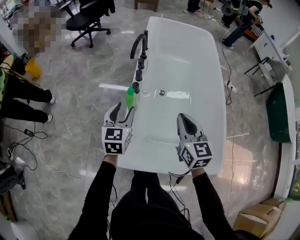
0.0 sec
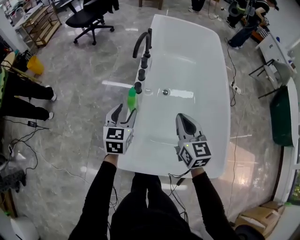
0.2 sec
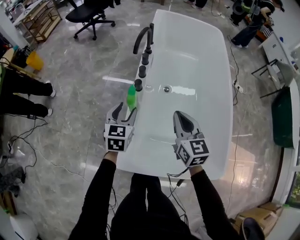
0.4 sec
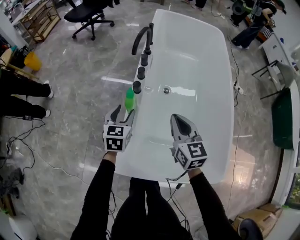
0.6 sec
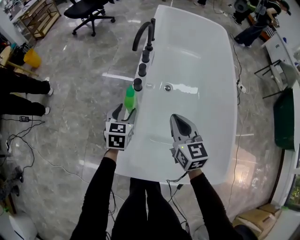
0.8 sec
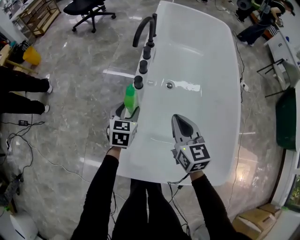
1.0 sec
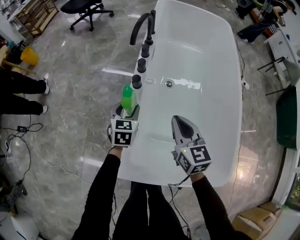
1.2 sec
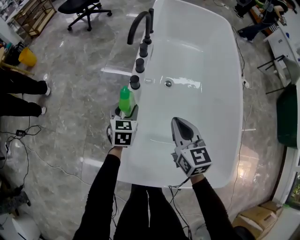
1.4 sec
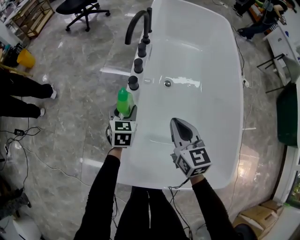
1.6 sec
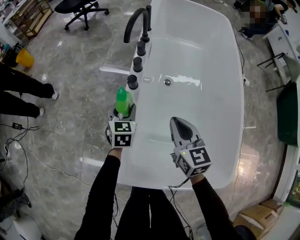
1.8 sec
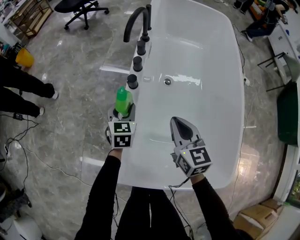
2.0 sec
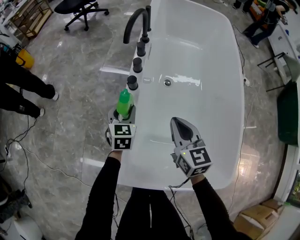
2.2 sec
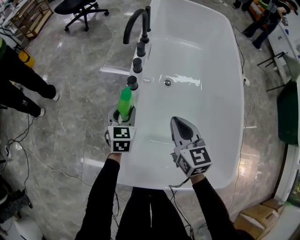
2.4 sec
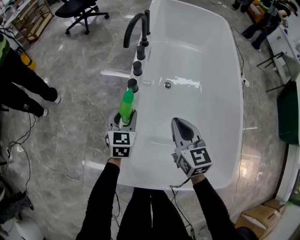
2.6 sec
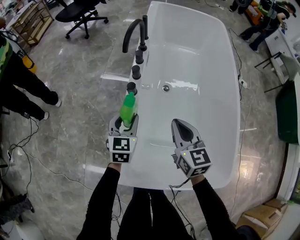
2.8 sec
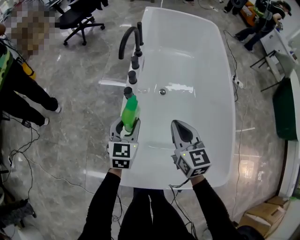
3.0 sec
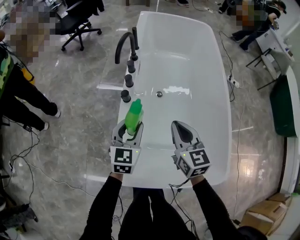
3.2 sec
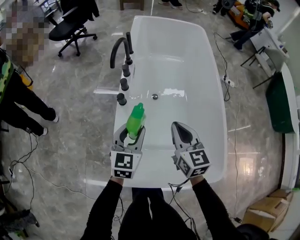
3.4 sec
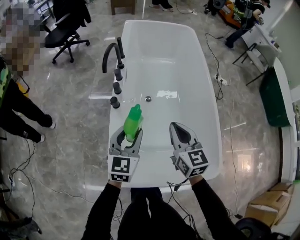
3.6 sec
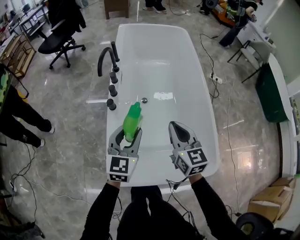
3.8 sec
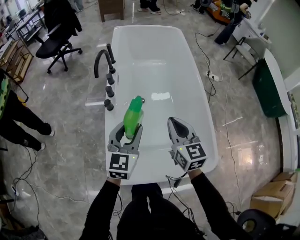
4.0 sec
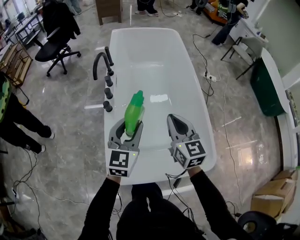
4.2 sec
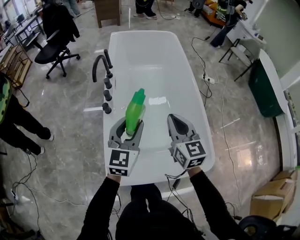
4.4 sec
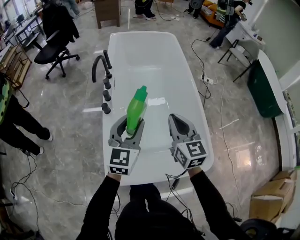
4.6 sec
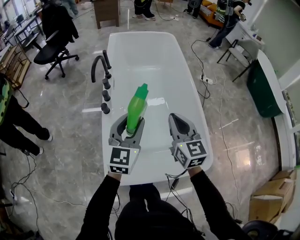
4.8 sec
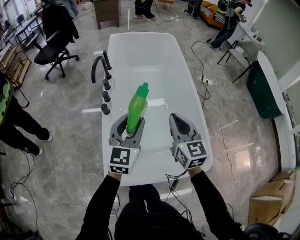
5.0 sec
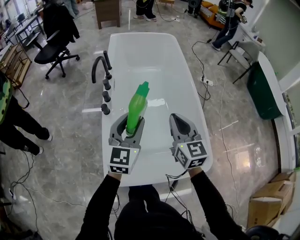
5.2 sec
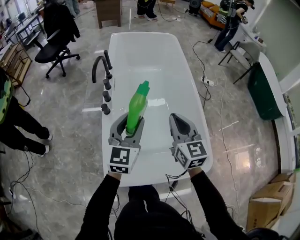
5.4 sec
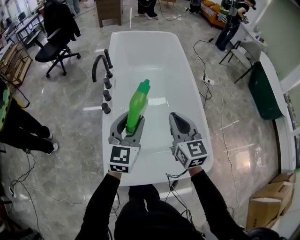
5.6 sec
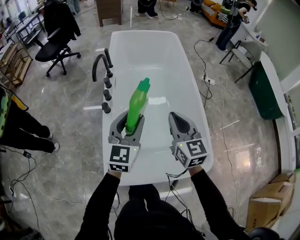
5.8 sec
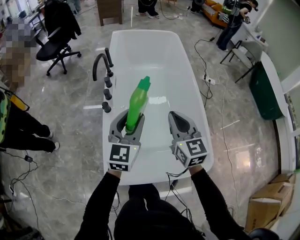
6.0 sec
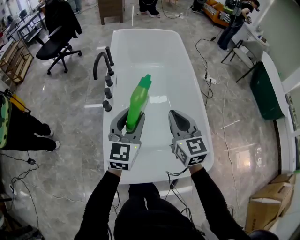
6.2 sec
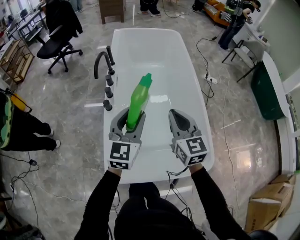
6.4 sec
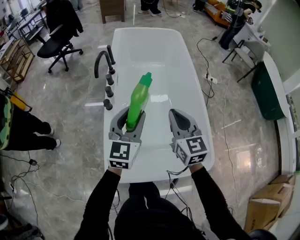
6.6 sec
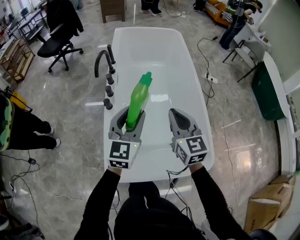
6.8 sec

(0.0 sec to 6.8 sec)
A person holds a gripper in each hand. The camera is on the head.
0.0 sec - 1.4 sec: The right gripper goes some 15 cm downward and forward; the left gripper moves downward and forward, about 20 cm.
1.4 sec - 2.8 sec: The left gripper travels upward by some 5 cm.
2.8 sec - 4.0 sec: The right gripper shifts some 15 cm upward and to the right. The left gripper goes some 25 cm upward, to the right and backward, and swivels approximately 20 degrees.
4.0 sec - 6.8 sec: The grippers make only small movements.

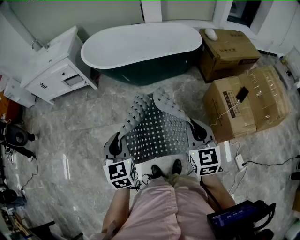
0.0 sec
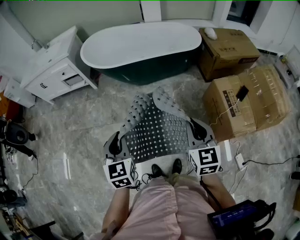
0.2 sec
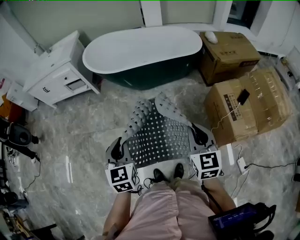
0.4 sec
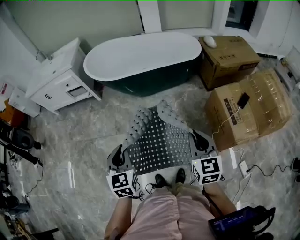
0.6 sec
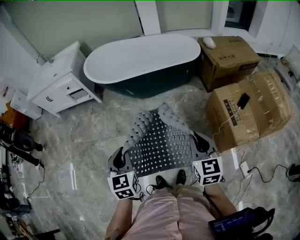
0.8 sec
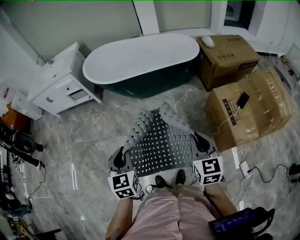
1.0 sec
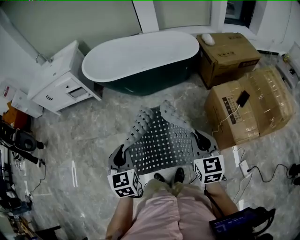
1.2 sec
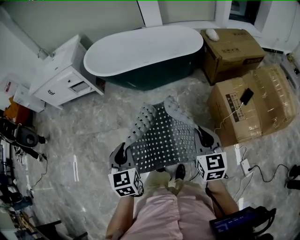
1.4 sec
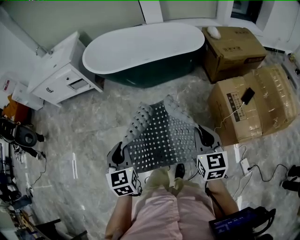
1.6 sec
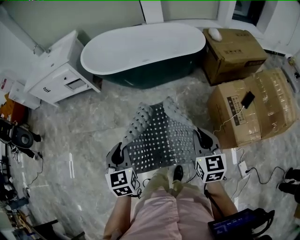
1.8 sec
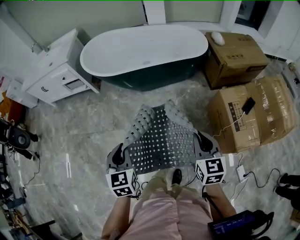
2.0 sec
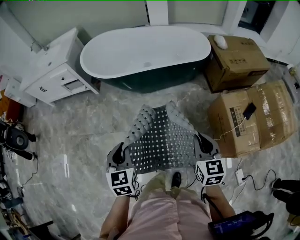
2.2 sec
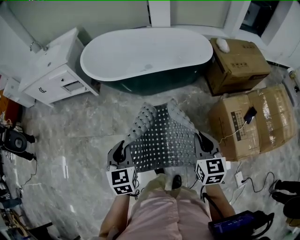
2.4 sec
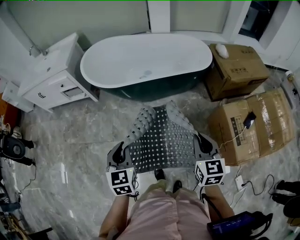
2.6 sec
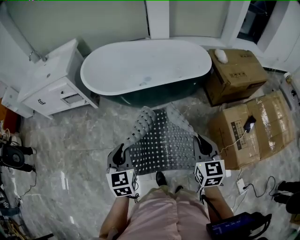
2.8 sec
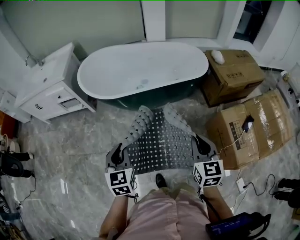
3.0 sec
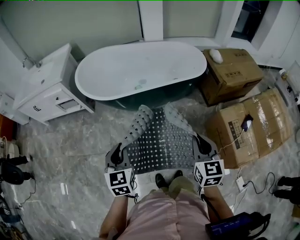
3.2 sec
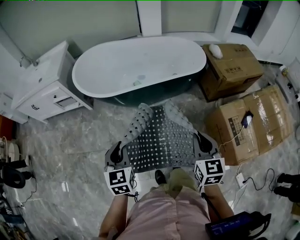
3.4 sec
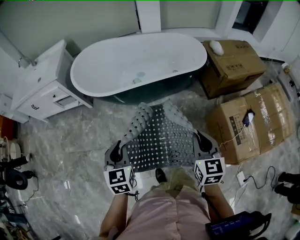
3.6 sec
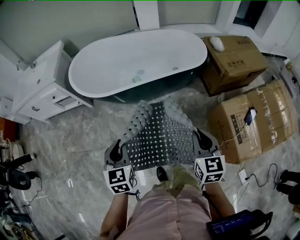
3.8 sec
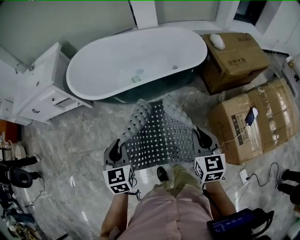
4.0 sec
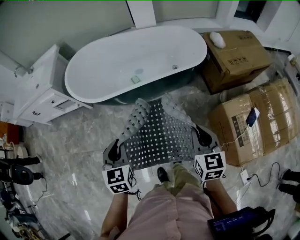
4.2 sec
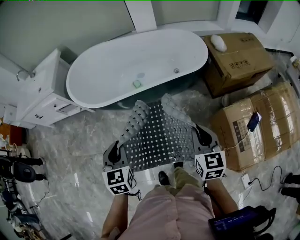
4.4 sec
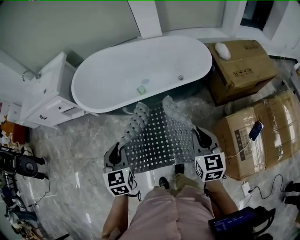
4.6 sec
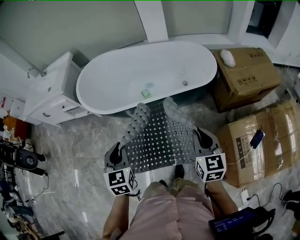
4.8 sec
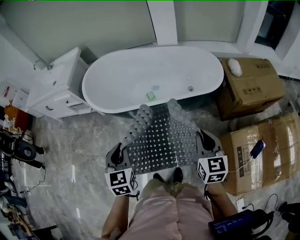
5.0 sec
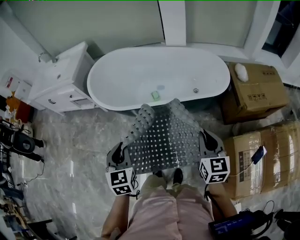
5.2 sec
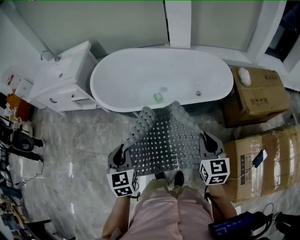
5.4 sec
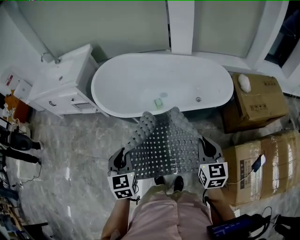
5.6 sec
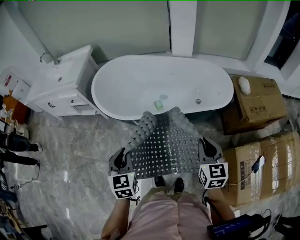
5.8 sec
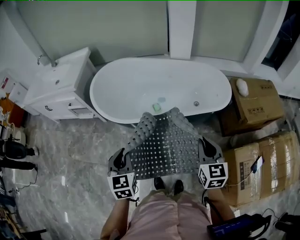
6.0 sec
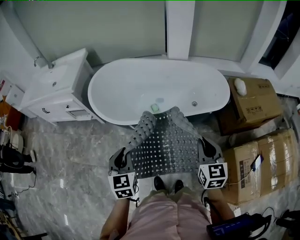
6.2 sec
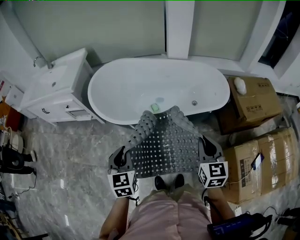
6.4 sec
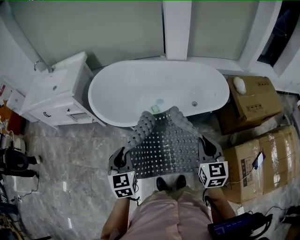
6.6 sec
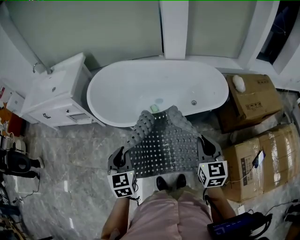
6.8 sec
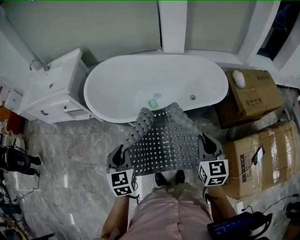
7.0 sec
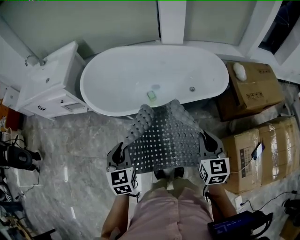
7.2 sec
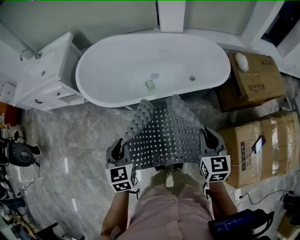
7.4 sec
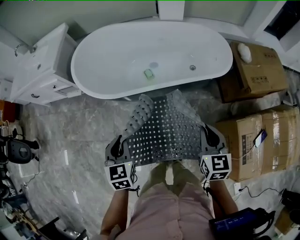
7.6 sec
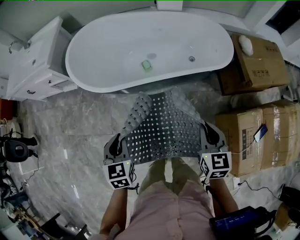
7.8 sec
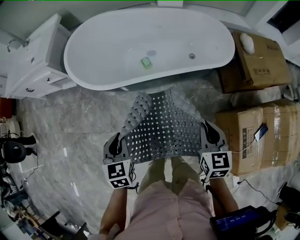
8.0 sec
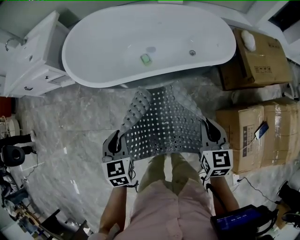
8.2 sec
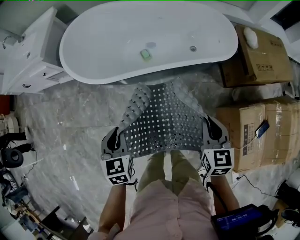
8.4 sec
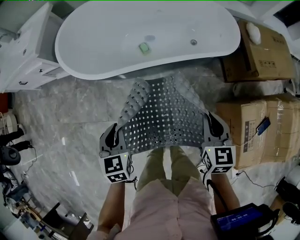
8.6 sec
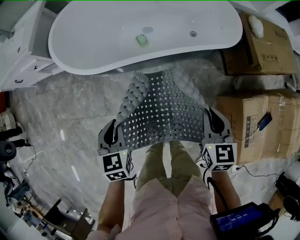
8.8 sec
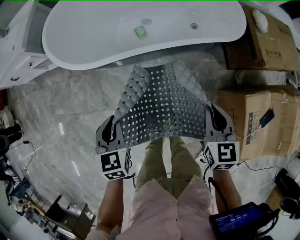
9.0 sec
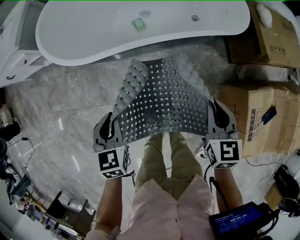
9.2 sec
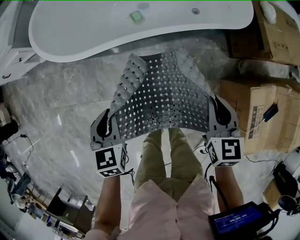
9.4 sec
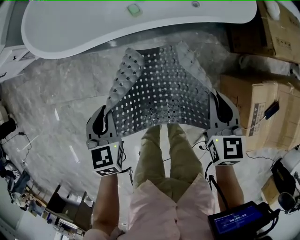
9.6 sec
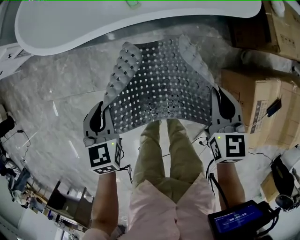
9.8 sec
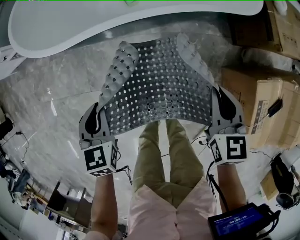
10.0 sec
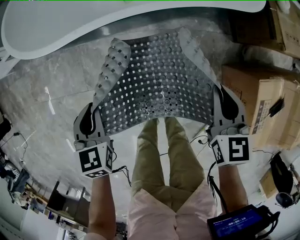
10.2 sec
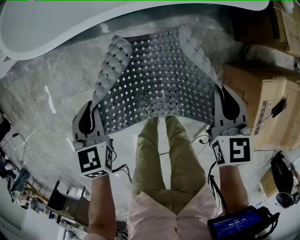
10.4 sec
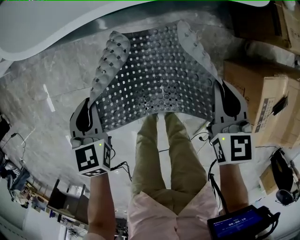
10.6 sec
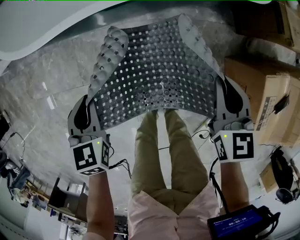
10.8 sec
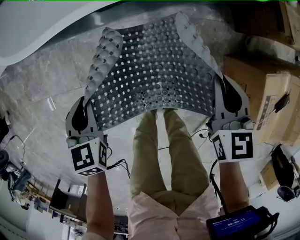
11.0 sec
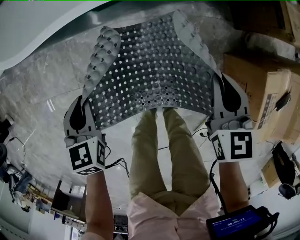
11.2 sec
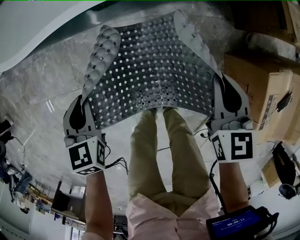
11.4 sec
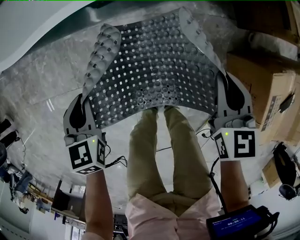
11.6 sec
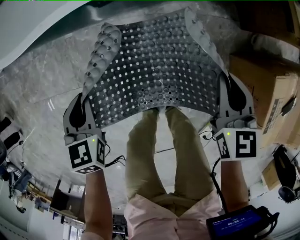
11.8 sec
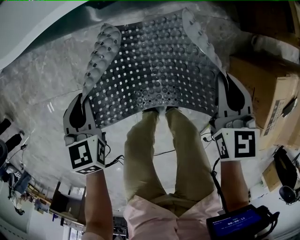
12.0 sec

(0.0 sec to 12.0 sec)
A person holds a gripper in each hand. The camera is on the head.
0.0 sec - 1.6 sec: The right gripper heads to the right, covering about 10 cm. The left gripper moves about 5 cm.
1.6 sec - 3.0 sec: The two grippers go about 20 cm forward.
3.0 sec - 4.4 sec: Both grippers move forward and to the right, about 15 cm.
4.4 sec - 6.0 sec: The left gripper goes roughly 15 cm to the left and forward; the right gripper shifts some 15 cm forward and to the left.
6.0 sec - 7.6 sec: Both grippers travel together downward, roughly 5 cm.
7.6 sec - 9.0 sec: Both grippers travel together downward, roughly 10 cm.
9.0 sec - 10.4 sec: Both grippers move downward, roughly 10 cm.
10.4 sec - 12.0 sec: There are only small adjustments of the grippers.

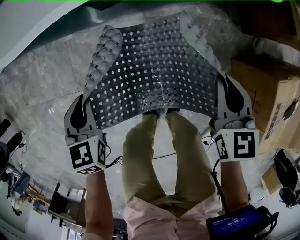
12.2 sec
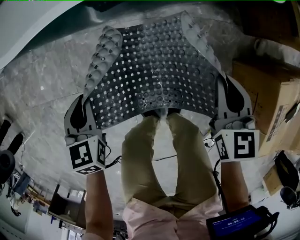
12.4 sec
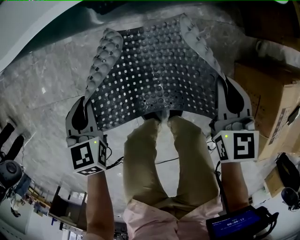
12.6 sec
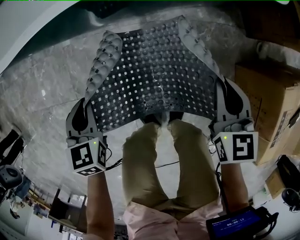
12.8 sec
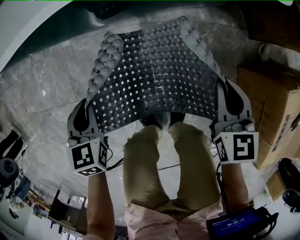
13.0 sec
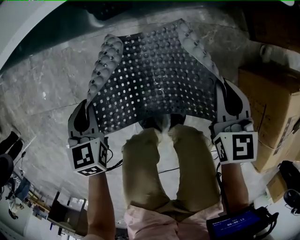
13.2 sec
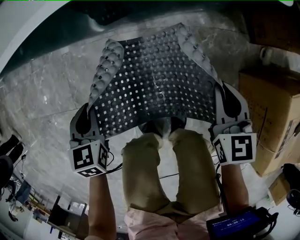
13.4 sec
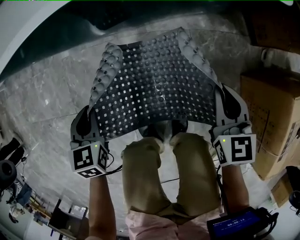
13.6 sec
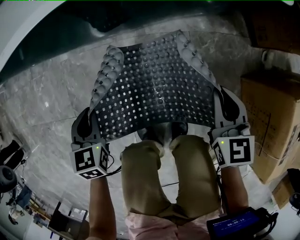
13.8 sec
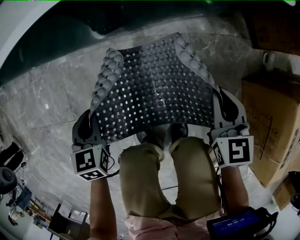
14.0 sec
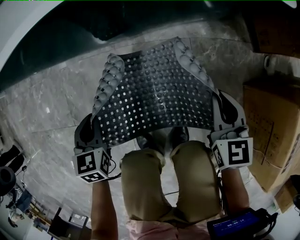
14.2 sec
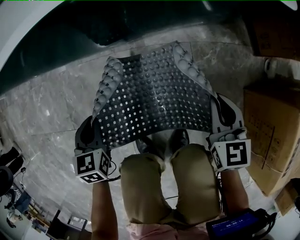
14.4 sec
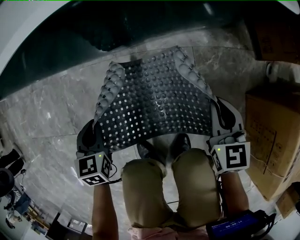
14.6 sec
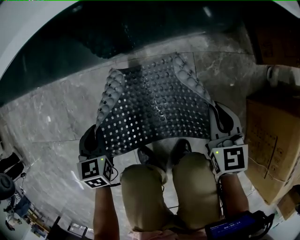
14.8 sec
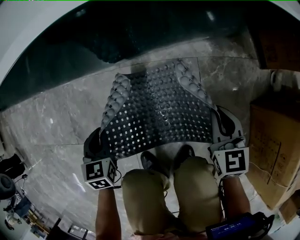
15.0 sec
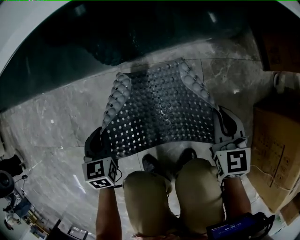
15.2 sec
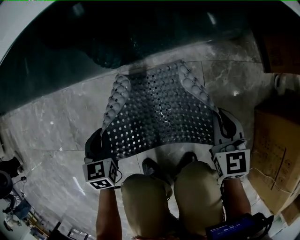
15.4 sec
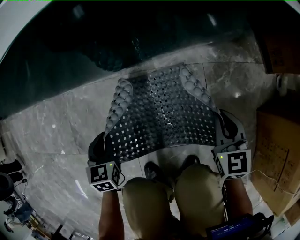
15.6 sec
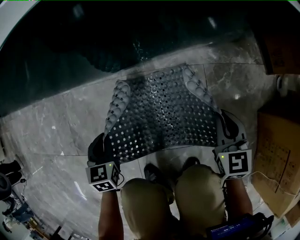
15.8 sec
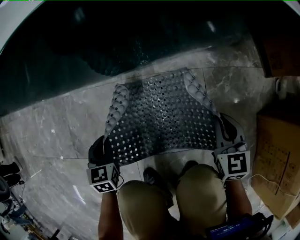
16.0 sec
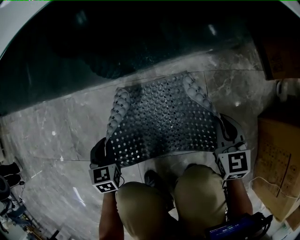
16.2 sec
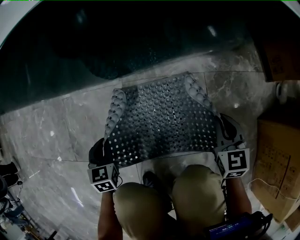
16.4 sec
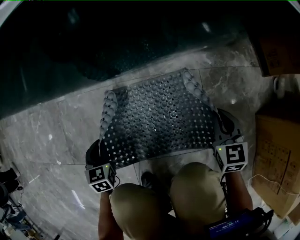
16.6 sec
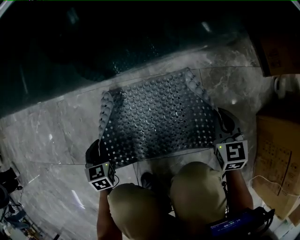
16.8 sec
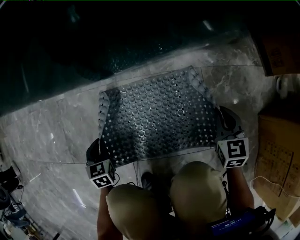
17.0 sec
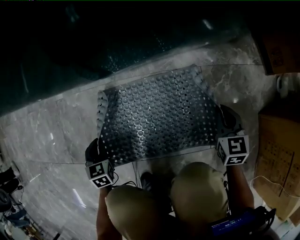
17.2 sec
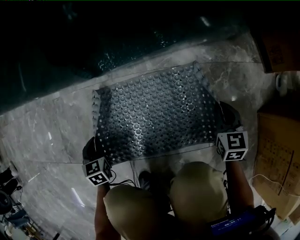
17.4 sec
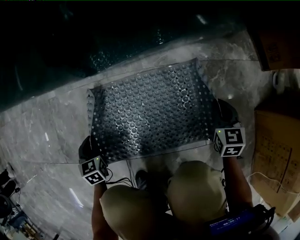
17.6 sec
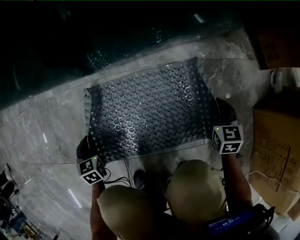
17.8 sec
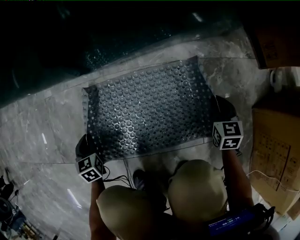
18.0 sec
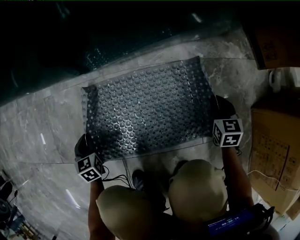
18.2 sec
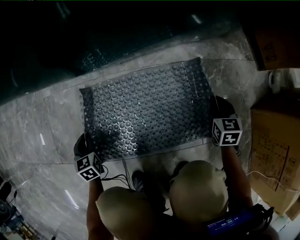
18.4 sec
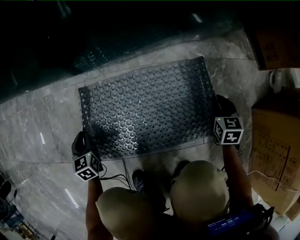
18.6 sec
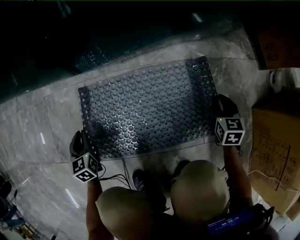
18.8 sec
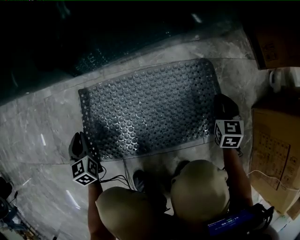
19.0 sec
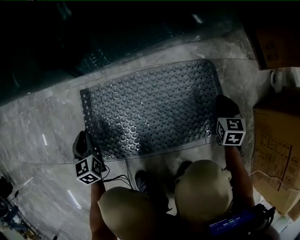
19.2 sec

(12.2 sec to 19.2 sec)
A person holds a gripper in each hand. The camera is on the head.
12.2 sec - 13.6 sec: The two grippers keep their place.
13.6 sec - 15.0 sec: The grippers stay close to where they were, moving slightly.
15.0 sec - 16.4 sec: The right gripper heads downward, covering some 5 cm.
16.4 sec - 17.8 sec: The left gripper is displaced downward and to the left by about 10 cm. The right gripper moves downward and to the right, about 10 cm.
17.8 sec - 19.2 sec: The grippers make only small movements.
